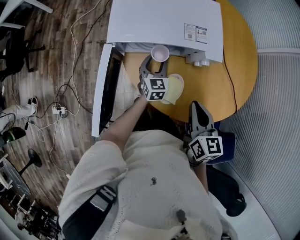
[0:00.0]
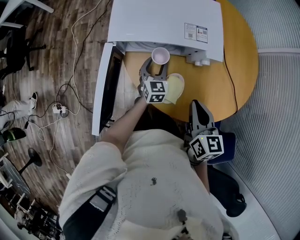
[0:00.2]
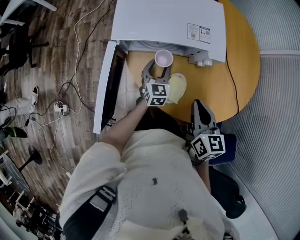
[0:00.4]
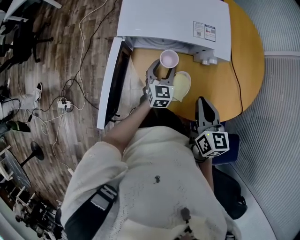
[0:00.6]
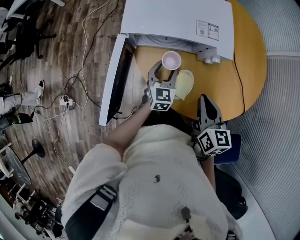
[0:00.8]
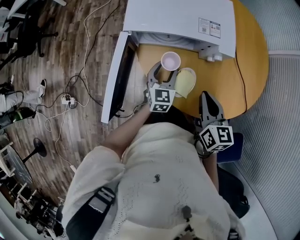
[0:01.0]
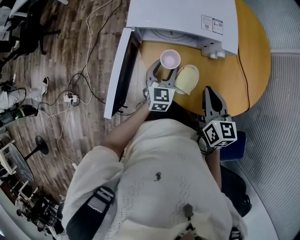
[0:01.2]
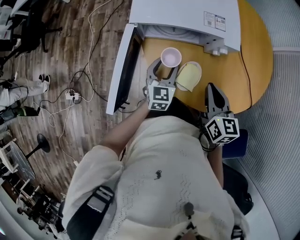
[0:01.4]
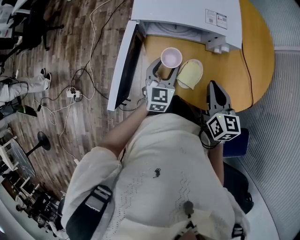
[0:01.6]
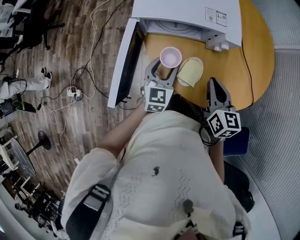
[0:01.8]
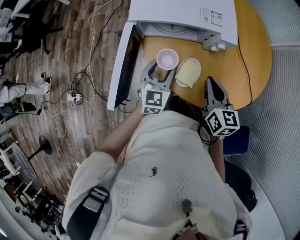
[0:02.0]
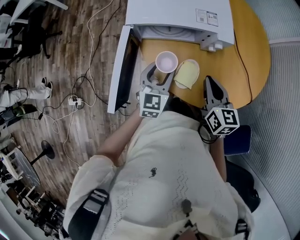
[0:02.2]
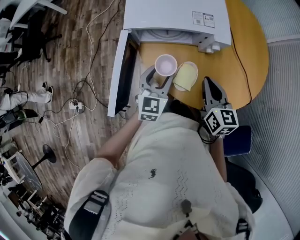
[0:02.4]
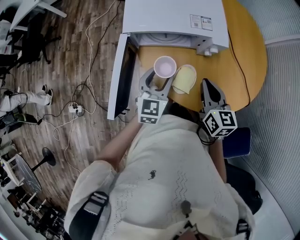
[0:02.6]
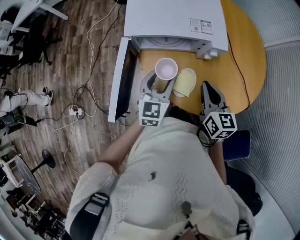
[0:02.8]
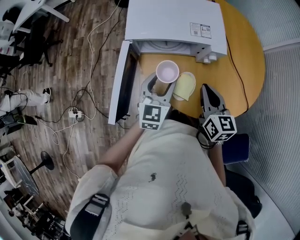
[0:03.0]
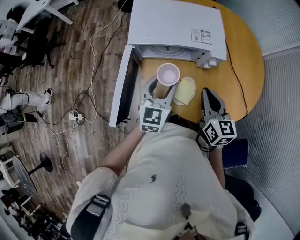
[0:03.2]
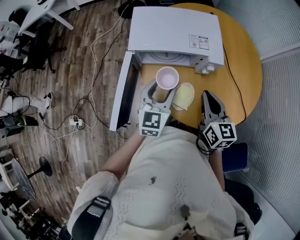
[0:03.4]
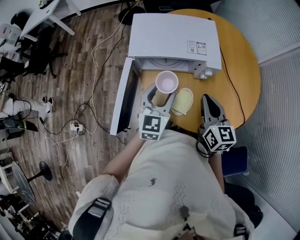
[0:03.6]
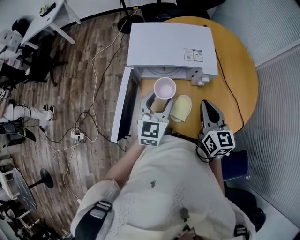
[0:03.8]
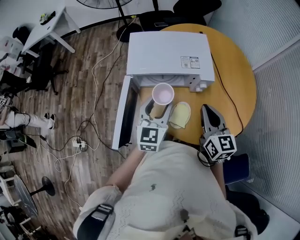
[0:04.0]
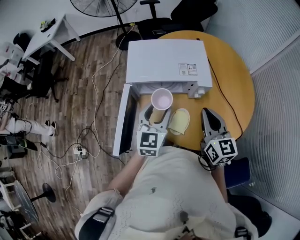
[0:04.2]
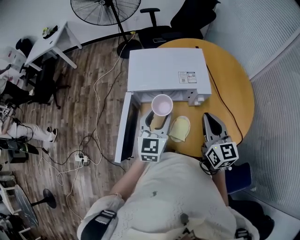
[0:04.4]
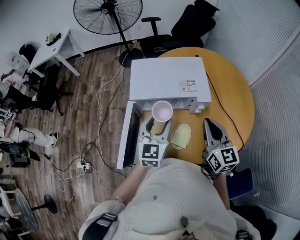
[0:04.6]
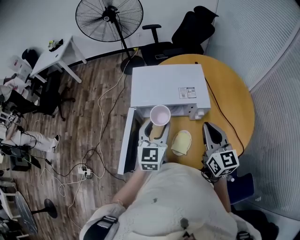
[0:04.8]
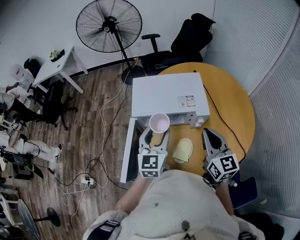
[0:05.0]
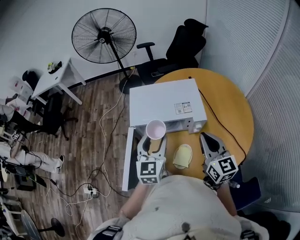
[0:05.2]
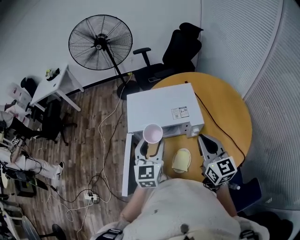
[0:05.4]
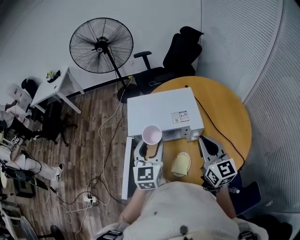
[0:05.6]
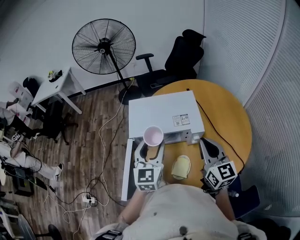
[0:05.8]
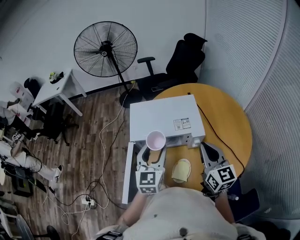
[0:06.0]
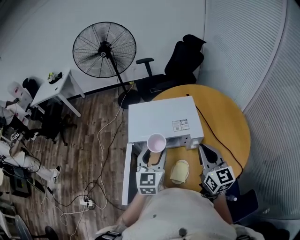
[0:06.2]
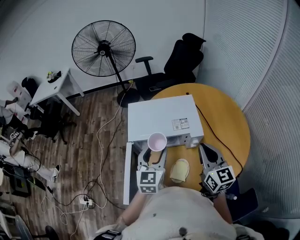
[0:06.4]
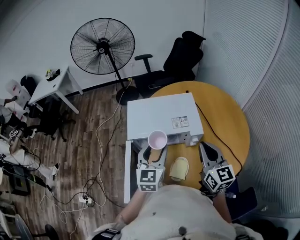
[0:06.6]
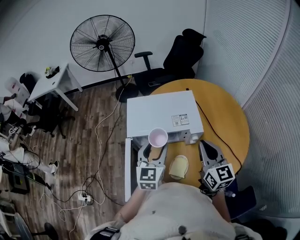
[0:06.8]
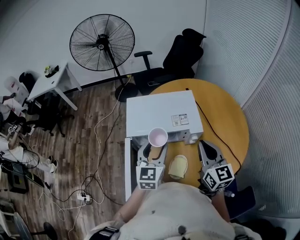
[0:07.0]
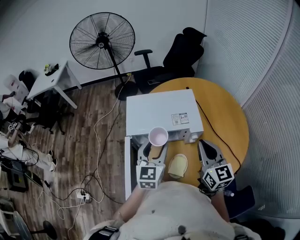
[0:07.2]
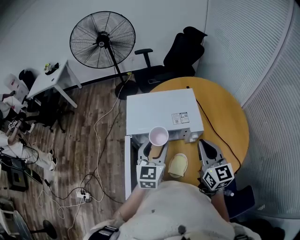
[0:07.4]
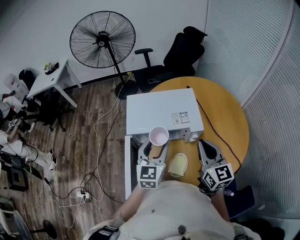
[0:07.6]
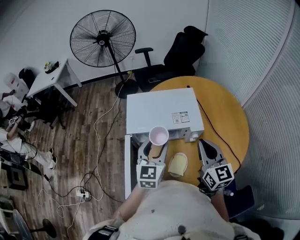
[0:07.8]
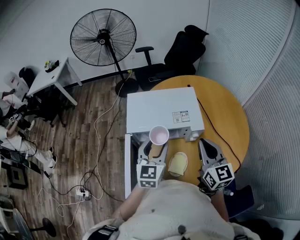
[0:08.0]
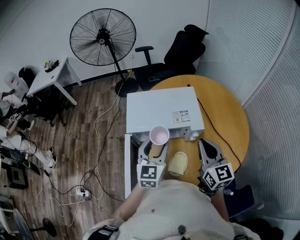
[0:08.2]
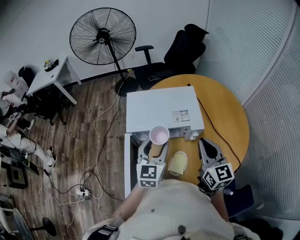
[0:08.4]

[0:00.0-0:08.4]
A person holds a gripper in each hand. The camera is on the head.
0:00.0 to 0:01.4: The left gripper goes about 15 cm backward and upward.
0:01.4 to 0:02.8: The left gripper heads upward, covering approximately 10 cm.
0:02.8 to 0:04.2: Both grippers move upward, some 10 cm.
0:04.2 to 0:05.6: Both grippers move upward, some 10 cm.
0:05.6 to 0:07.0: There are only small adjustments of the grippers.
0:07.0 to 0:08.4: Both grippers stay about where they are.

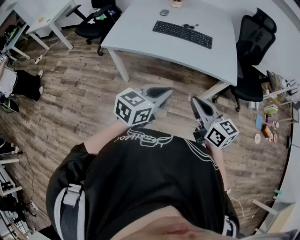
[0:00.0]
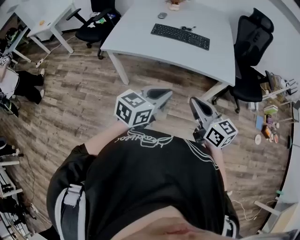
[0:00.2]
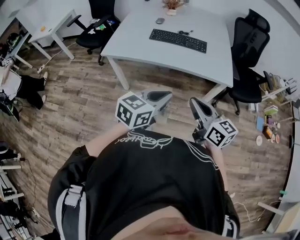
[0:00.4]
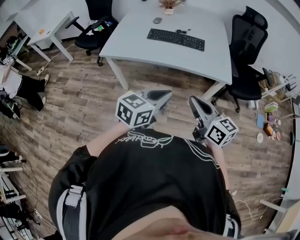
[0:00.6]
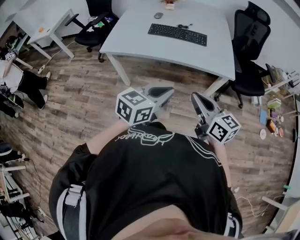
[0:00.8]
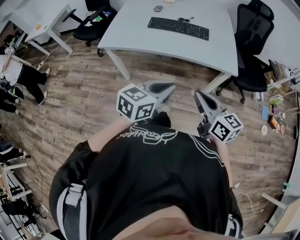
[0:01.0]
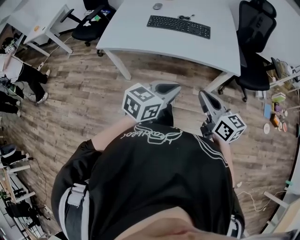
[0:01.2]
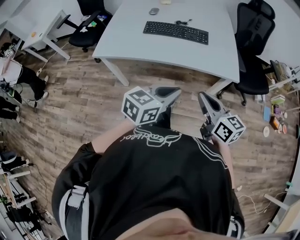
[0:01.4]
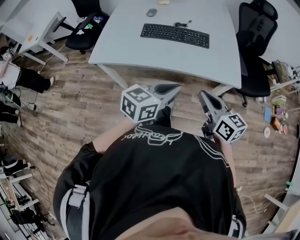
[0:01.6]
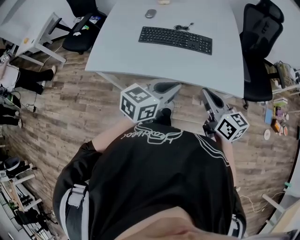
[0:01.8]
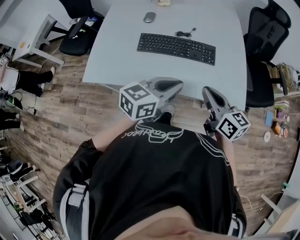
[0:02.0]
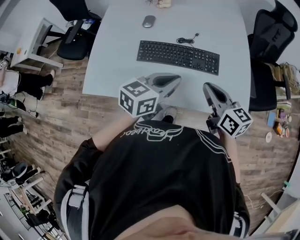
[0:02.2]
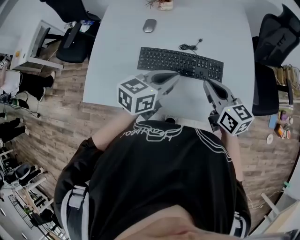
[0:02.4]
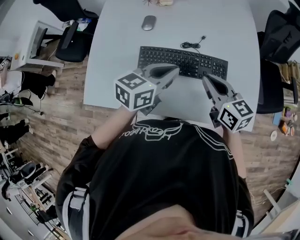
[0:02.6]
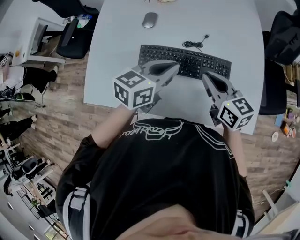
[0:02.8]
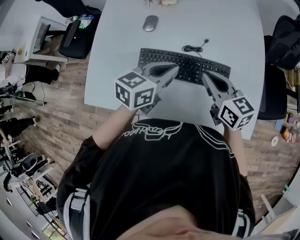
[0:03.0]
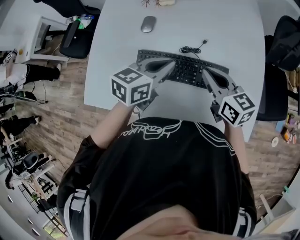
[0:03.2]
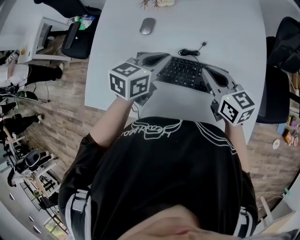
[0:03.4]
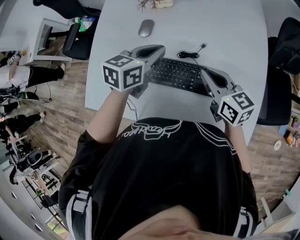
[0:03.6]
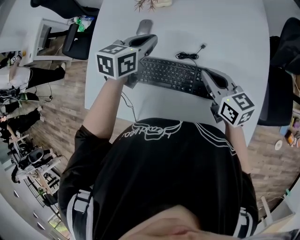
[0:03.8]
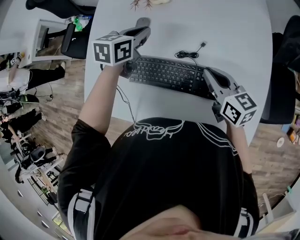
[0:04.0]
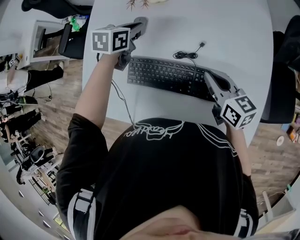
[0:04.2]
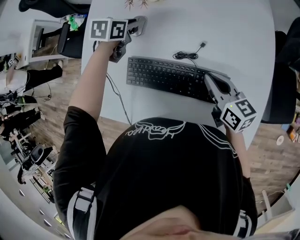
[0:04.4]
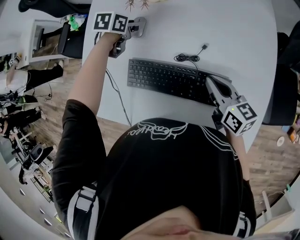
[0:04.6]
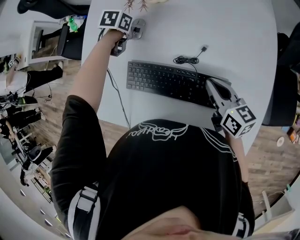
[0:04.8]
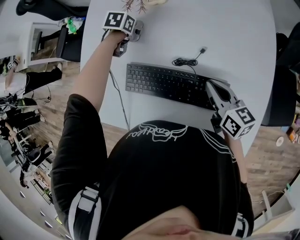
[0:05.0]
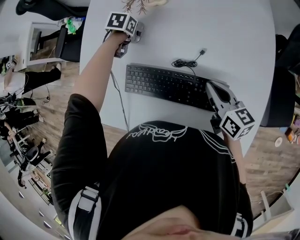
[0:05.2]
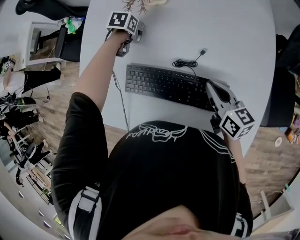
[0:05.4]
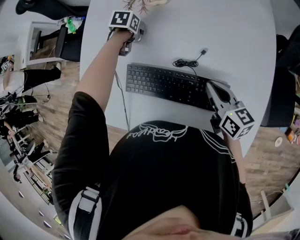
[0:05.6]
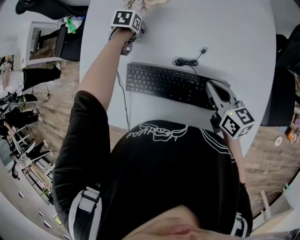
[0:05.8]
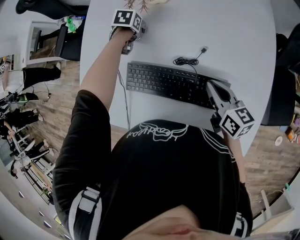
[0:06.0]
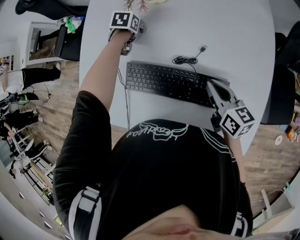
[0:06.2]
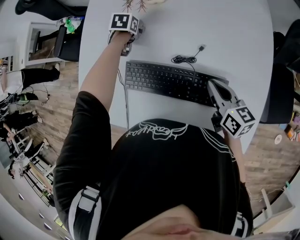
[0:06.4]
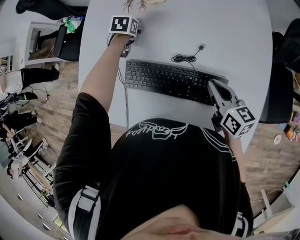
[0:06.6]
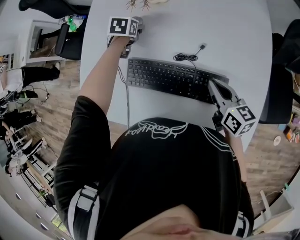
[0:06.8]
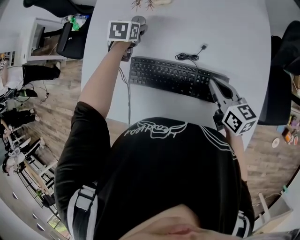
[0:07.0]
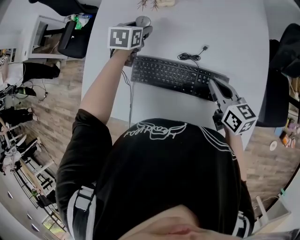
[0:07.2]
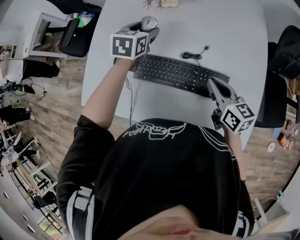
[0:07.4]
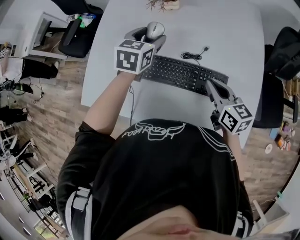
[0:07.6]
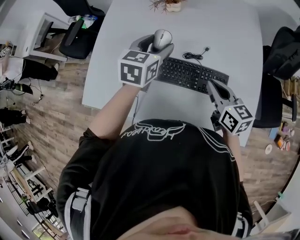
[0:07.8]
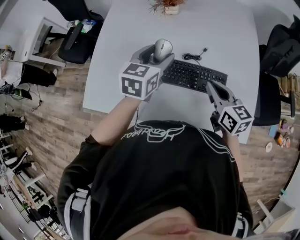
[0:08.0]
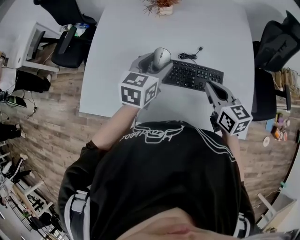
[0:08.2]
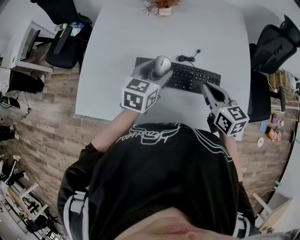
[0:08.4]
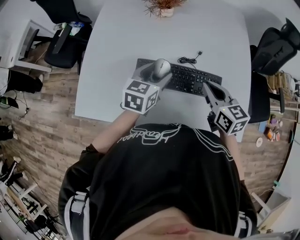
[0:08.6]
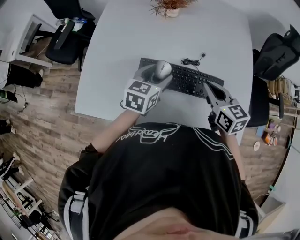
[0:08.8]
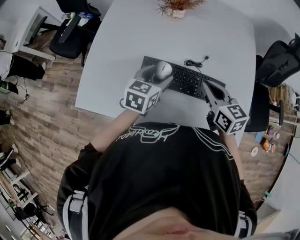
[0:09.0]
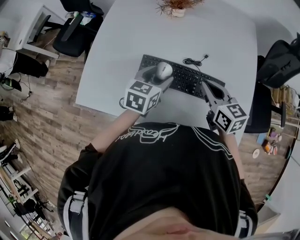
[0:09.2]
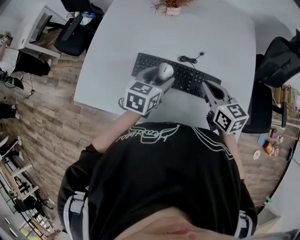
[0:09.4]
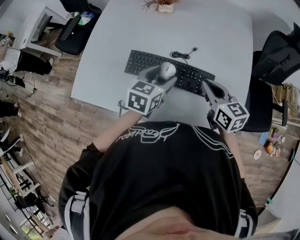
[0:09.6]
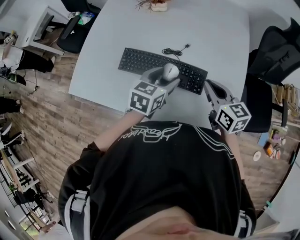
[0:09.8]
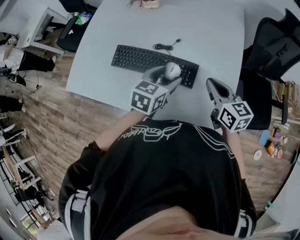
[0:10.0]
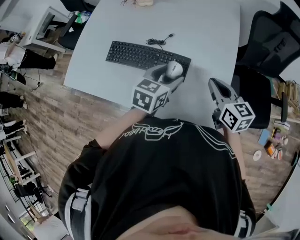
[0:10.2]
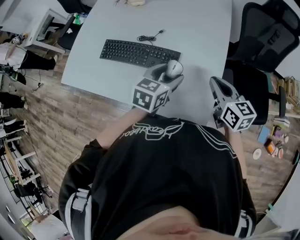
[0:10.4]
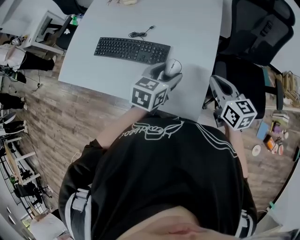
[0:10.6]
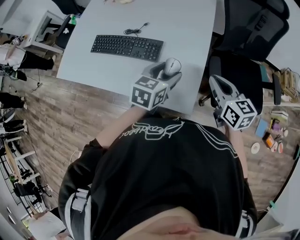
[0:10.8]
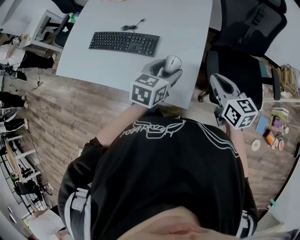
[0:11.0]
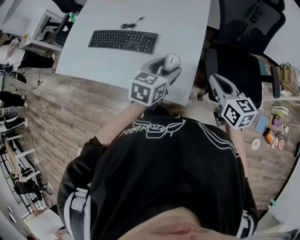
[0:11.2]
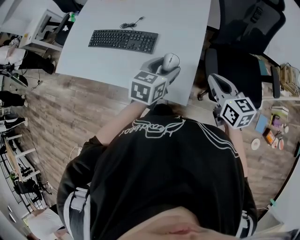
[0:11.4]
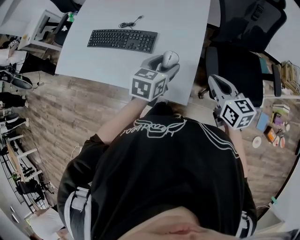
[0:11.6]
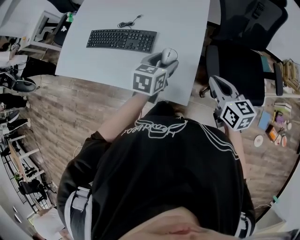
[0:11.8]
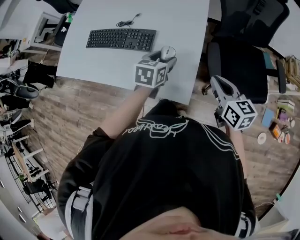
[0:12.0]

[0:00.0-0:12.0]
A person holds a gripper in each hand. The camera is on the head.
0:00.0 to 0:01.6: The grippers both shift forward by approximately 15 cm.
0:01.6 to 0:03.0: The two grippers travel together, forward, about 40 cm.
0:03.0 to 0:04.4: The right gripper travels forward, downward and to the right by roughly 10 cm. The left gripper heads forward, covering approximately 25 cm, and changes its angle by about 30 degrees.
0:04.4 to 0:06.0: The left gripper goes about 10 cm downward, turns by some 20 degrees, and opens.
0:06.0 to 0:07.6: The right gripper ends up about 10 cm from where it was. Meanwhile the left gripper moves upward, roughly 20 cm, and angles its fingers upward, by approximately 40 degrees.
0:07.6 to 0:09.0: The left gripper travels backward and downward by roughly 15 cm, while the right gripper changes place by some 5 cm.
0:09.0 to 0:10.4: Both grippers travel together to the right, some 30 cm.
0:10.4 to 0:12.0: The left gripper heads to the right and downward, covering approximately 10 cm. Meanwhile the right gripper travels to the right and backward by some 15 cm.

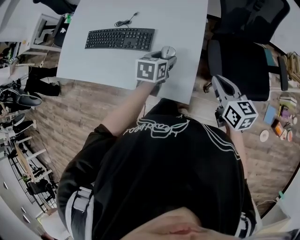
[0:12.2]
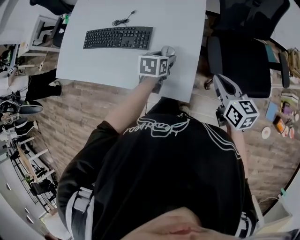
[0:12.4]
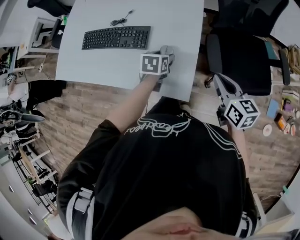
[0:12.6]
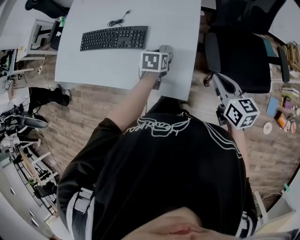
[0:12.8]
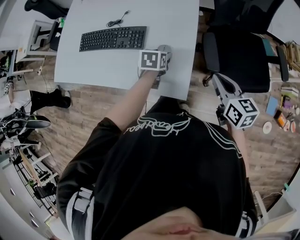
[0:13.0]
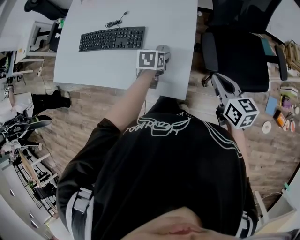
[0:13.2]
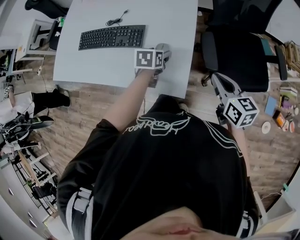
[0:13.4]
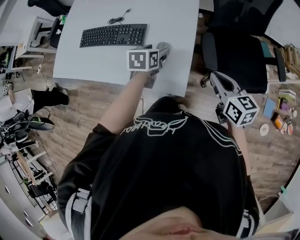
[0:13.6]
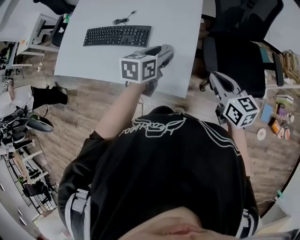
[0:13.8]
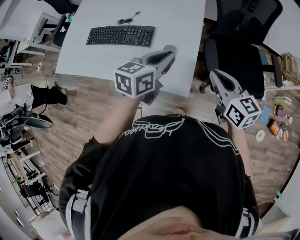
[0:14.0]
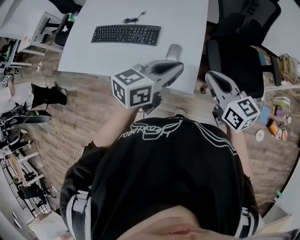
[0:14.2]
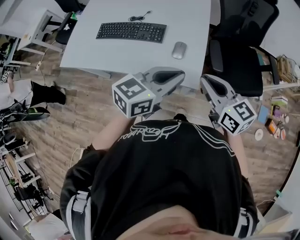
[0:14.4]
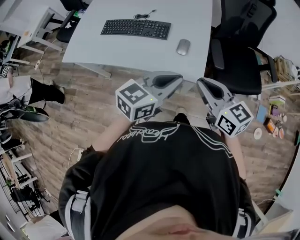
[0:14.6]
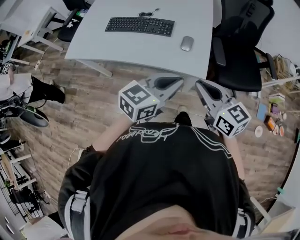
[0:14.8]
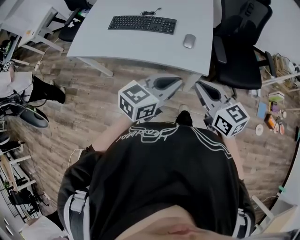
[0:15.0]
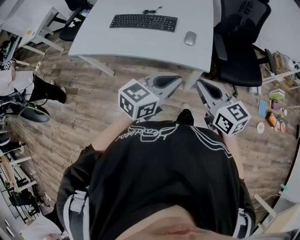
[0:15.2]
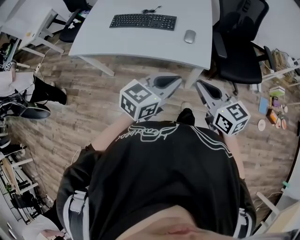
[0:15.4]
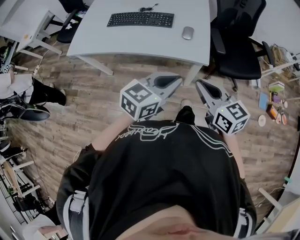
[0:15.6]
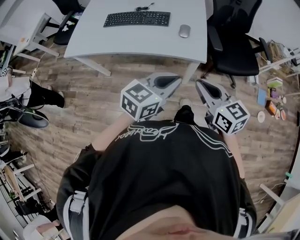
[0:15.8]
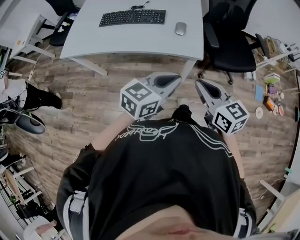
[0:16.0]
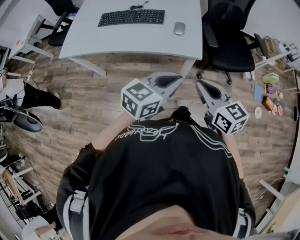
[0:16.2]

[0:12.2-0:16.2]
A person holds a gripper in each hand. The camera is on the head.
0:12.2 to 0:13.6: The grippers stay close to where they were, moving slightly.
0:13.6 to 0:14.8: The right gripper travels backward, to the left and upward by some 30 cm, while the left gripper travels backward and upward by about 35 cm, points its fingers about 30 degrees further upward, and closes up.
0:14.8 to 0:16.2: The two grippers go roughly 10 cm backward.
